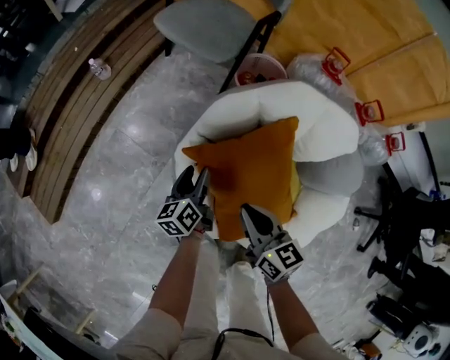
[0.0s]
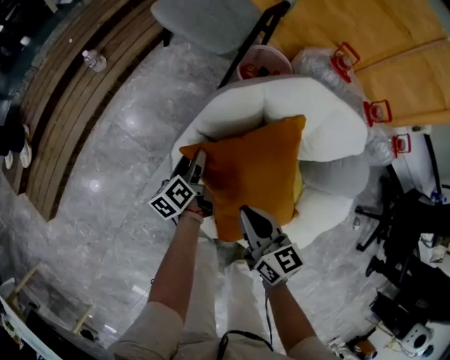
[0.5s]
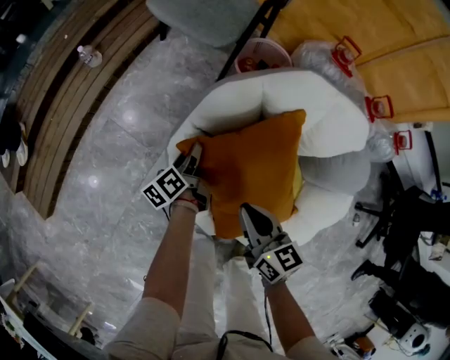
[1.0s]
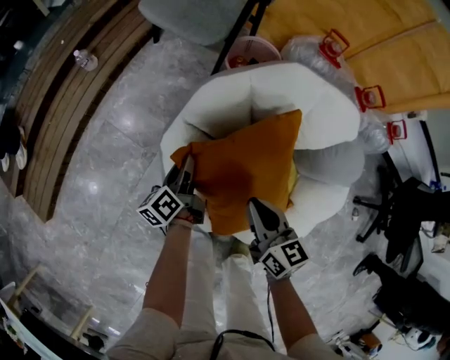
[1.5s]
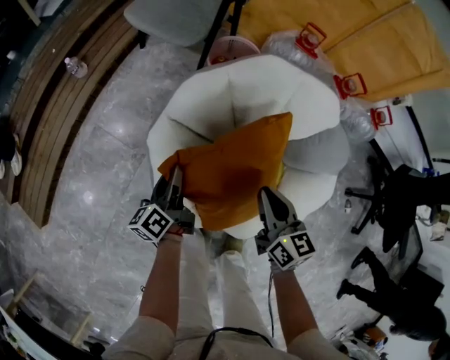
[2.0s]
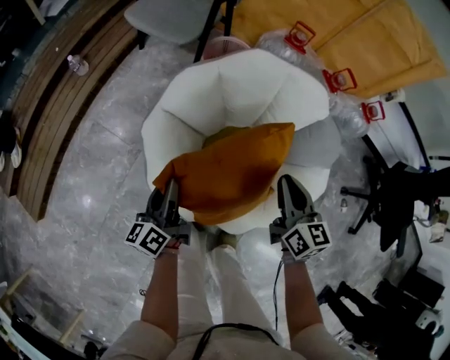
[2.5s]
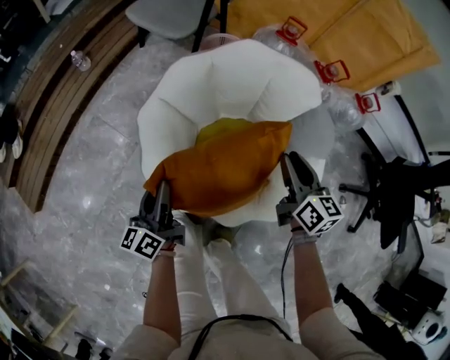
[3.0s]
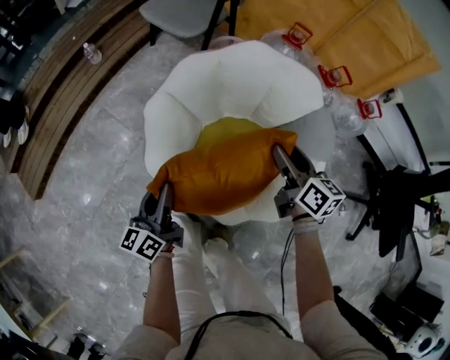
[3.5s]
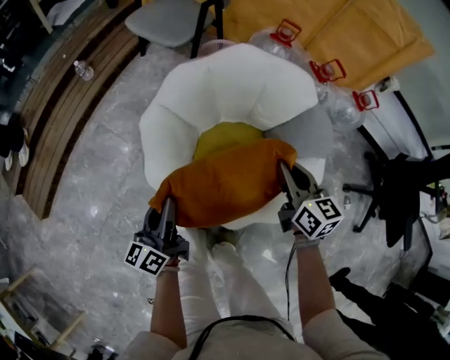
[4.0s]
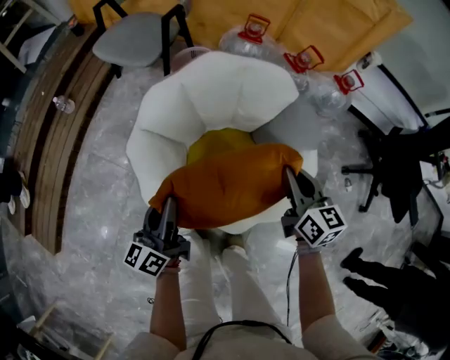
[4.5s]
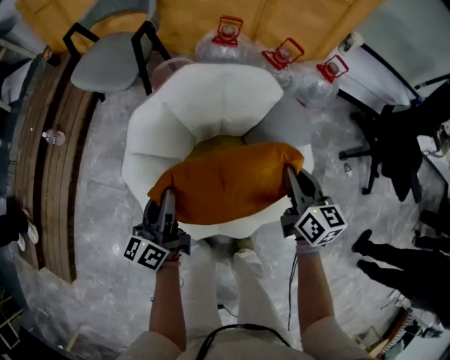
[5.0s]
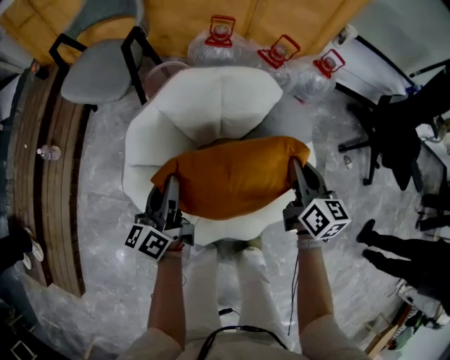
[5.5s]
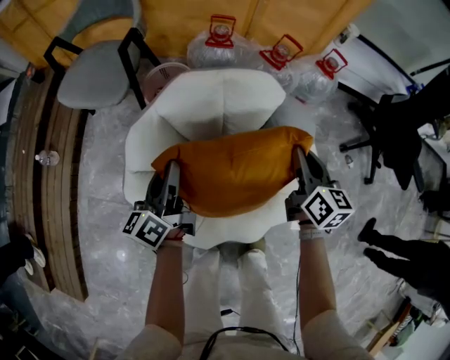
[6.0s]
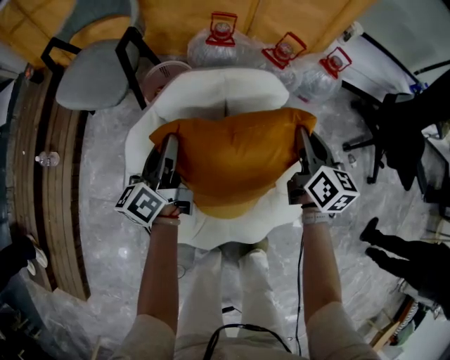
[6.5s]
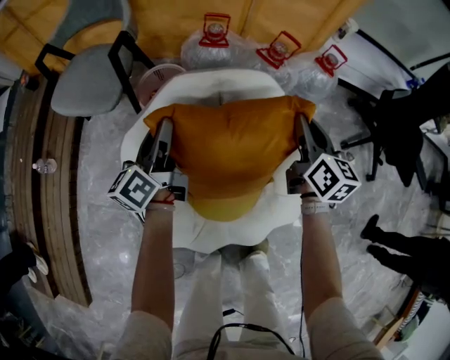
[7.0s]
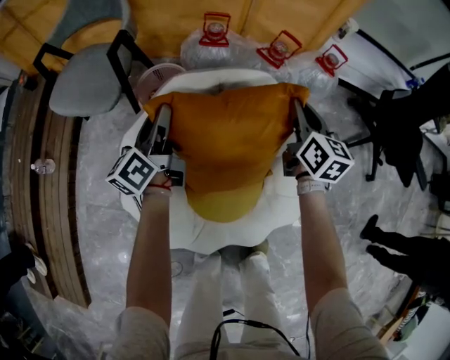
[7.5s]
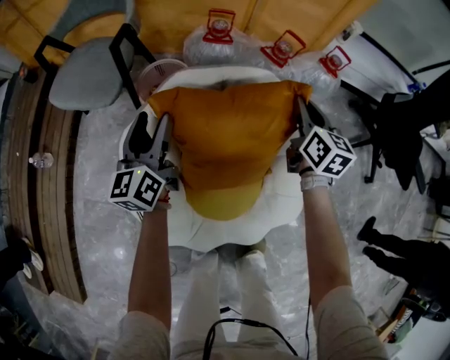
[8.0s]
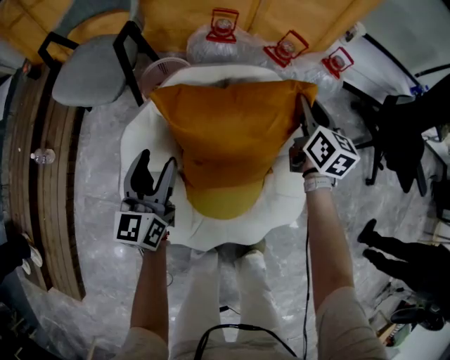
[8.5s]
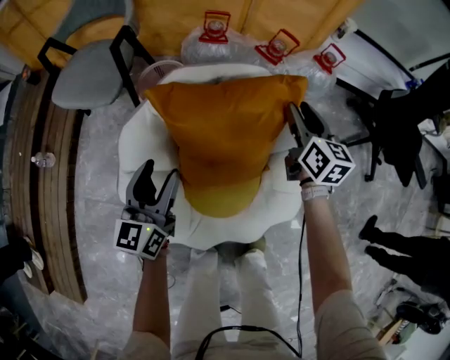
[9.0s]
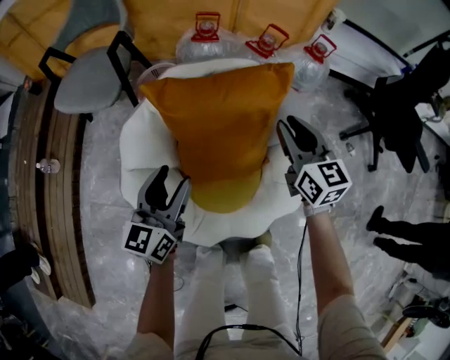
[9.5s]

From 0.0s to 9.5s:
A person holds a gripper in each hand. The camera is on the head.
From 0.0s to 2.0s: The left gripper closes up, while the right gripper is displaced to the right by some 10 cm.
From 2.0s to 4.0s: The left gripper moves backward and upward, about 20 cm. Meanwhile the right gripper heads to the right, covering some 10 cm, and opens and closes again.
From 4.0s to 5.5s: The right gripper changes place by some 10 cm, and changes its angle by some 30 degrees; the left gripper ends up roughly 25 cm from where it was, and swivels some 20 degrees.
From 5.5s to 7.5s: The two grippers go roughly 20 cm forward.
From 7.5s to 9.5s: The left gripper moves backward, approximately 20 cm, changes its angle by roughly 30 degrees, and opens. The right gripper goes roughly 10 cm backward.

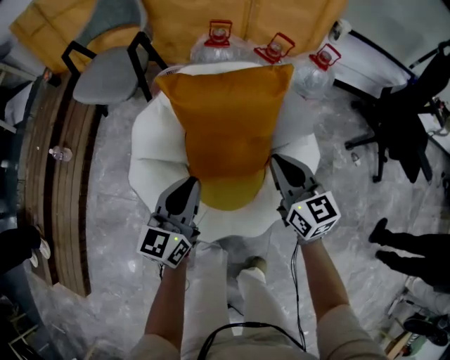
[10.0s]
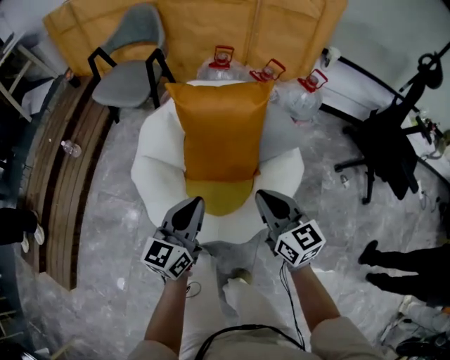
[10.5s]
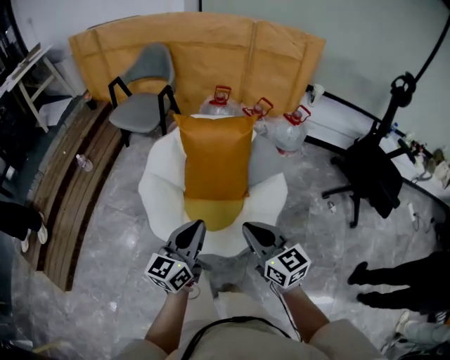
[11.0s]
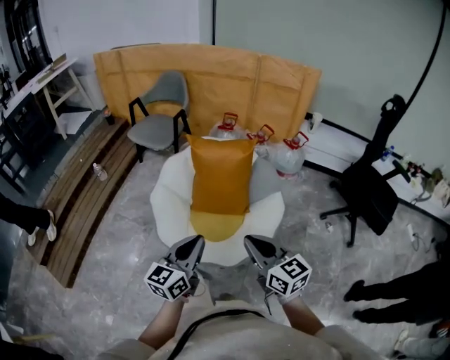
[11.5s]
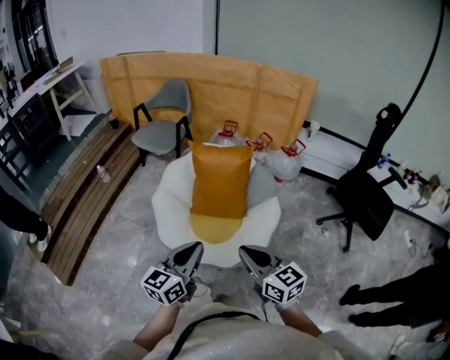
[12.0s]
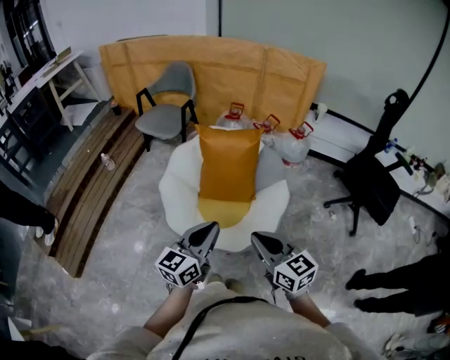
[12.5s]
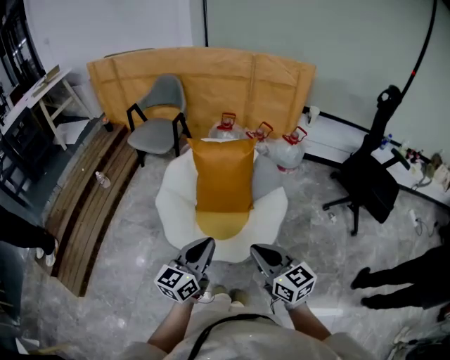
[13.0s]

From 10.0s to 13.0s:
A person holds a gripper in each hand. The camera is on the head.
From 10.0s to 11.5s: Both grippers move backward and upward, some 35 cm. The right gripper changes its angle by approximately 20 degrees.
From 11.5s to 13.0s: The grippers make only small movements.

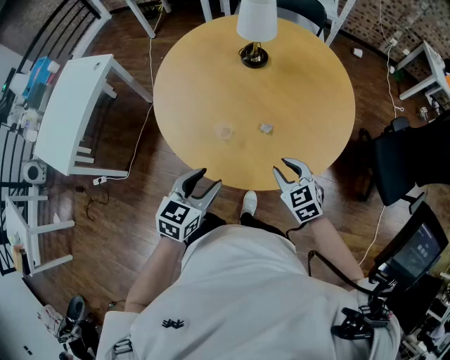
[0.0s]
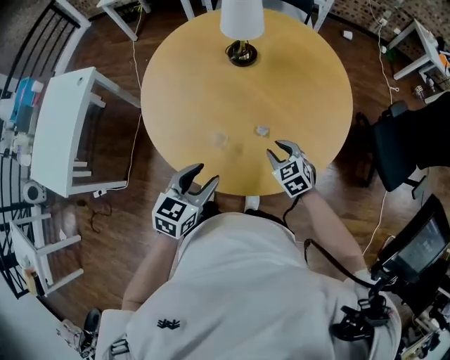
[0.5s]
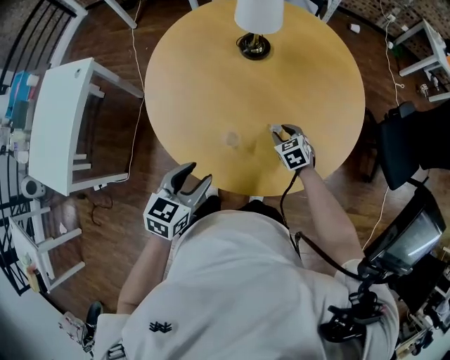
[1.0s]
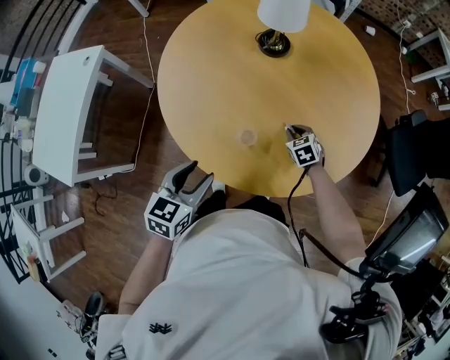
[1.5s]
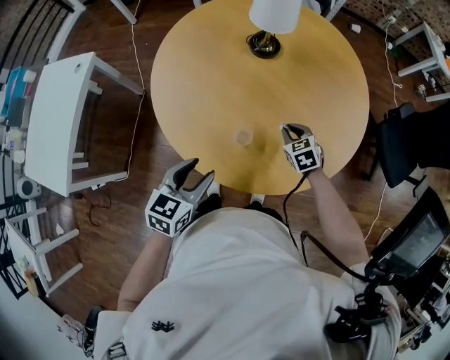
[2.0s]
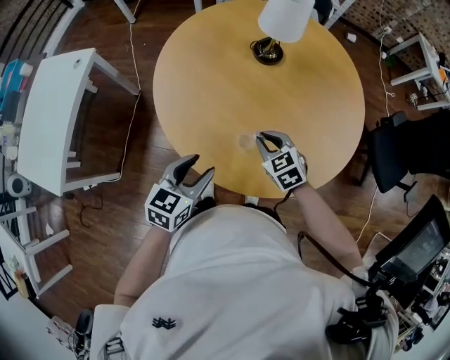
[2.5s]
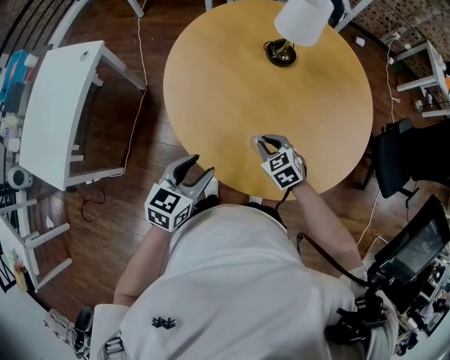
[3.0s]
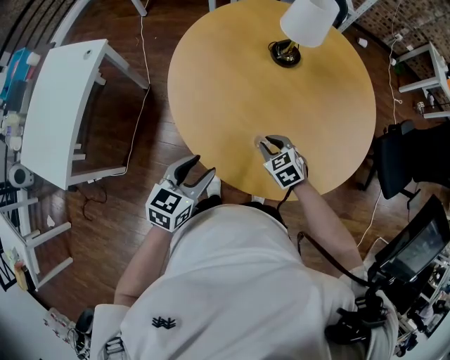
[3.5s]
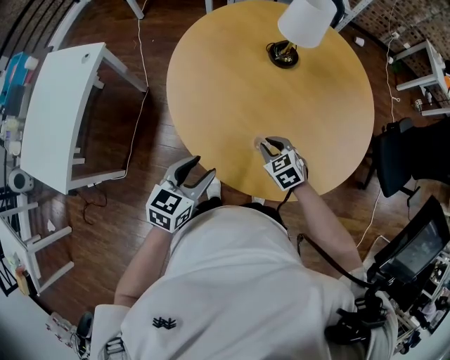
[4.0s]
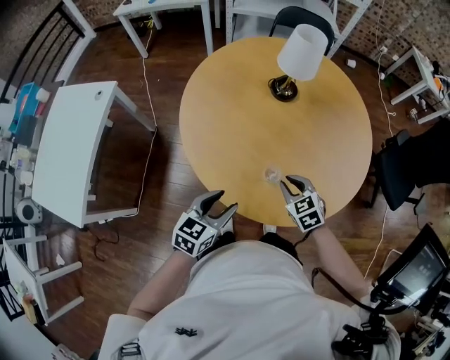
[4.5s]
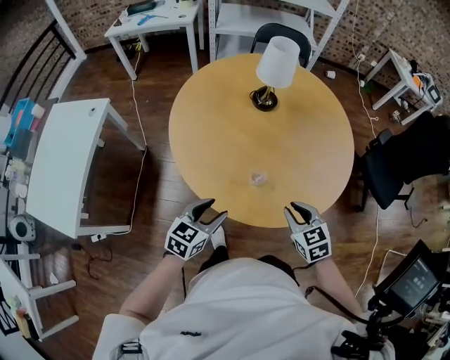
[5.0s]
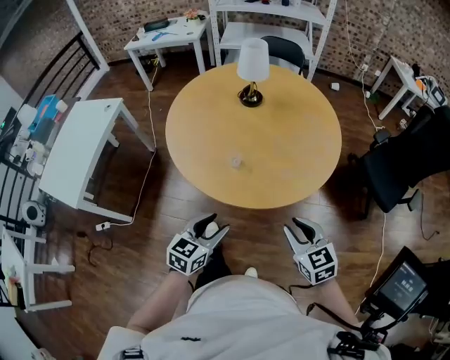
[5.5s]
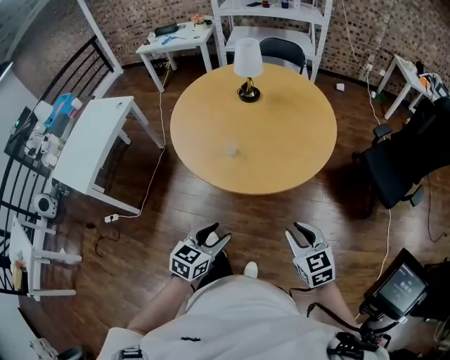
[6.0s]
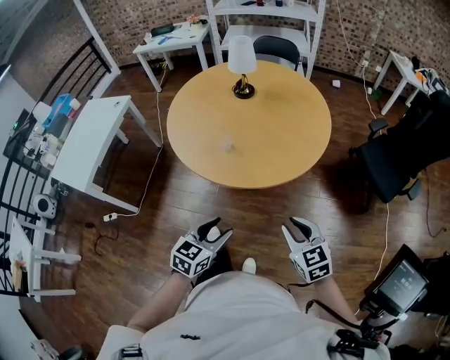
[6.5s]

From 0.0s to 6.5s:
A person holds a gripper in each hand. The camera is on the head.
From 0.0s to 2.0s: The right gripper shifts some 20 cm forward and downward. The left gripper heads to the left and forward, covering roughly 15 cm.
From 2.0s to 4.5s: The left gripper is displaced to the left by about 5 cm. Meanwhile the right gripper travels to the left, backward and upward by some 15 cm.
From 4.5s to 6.5s: Both grippers move backward and to the right, approximately 40 cm. The right gripper changes its angle by some 20 degrees.

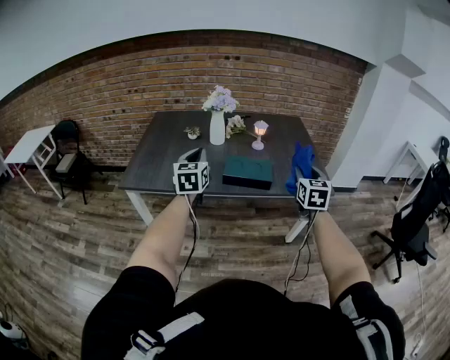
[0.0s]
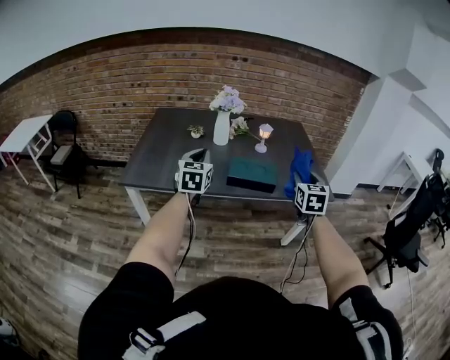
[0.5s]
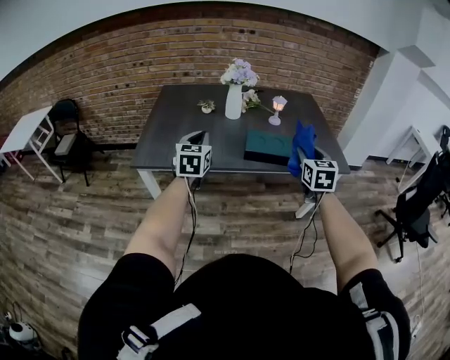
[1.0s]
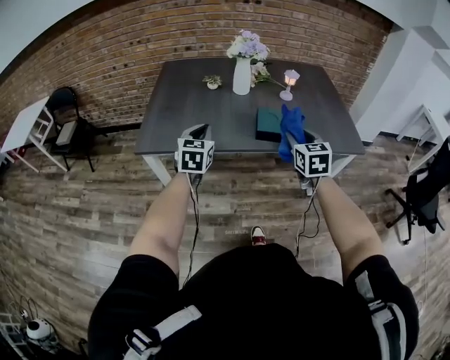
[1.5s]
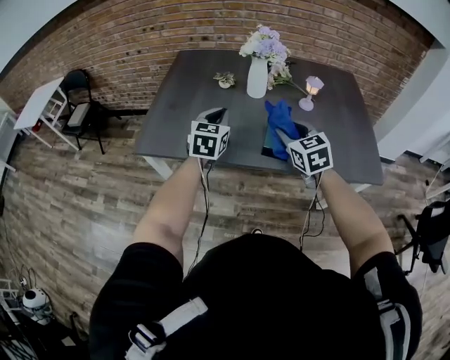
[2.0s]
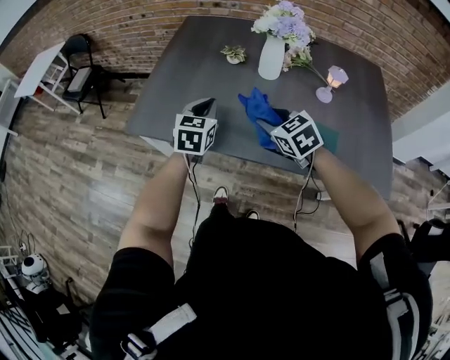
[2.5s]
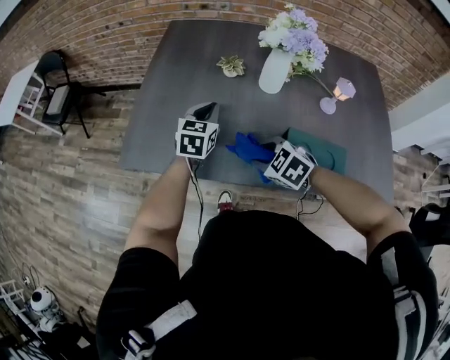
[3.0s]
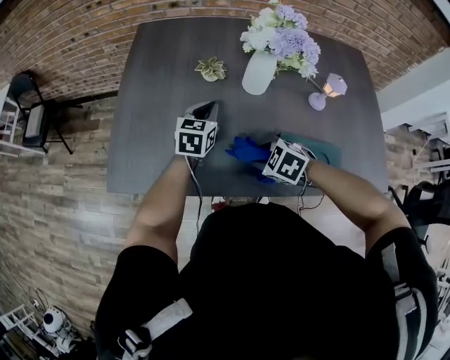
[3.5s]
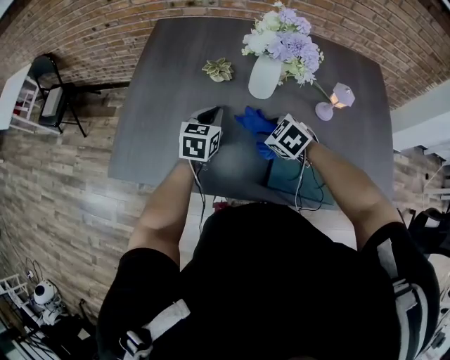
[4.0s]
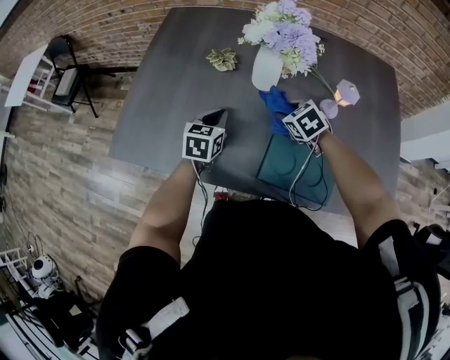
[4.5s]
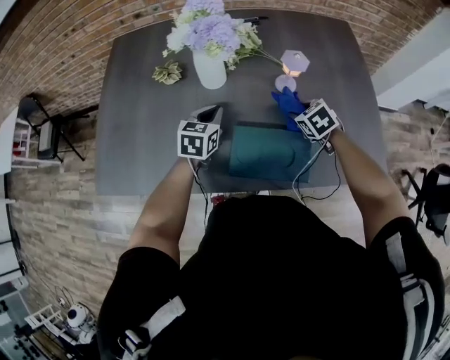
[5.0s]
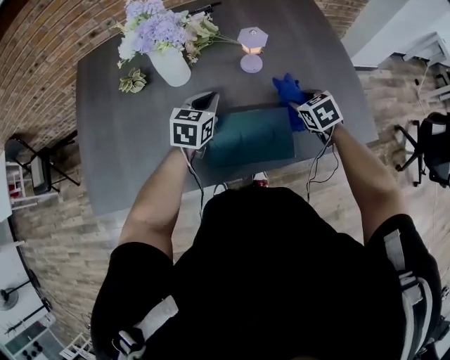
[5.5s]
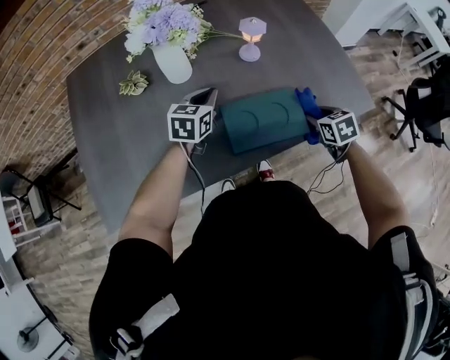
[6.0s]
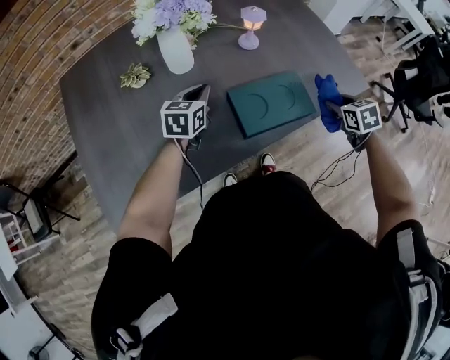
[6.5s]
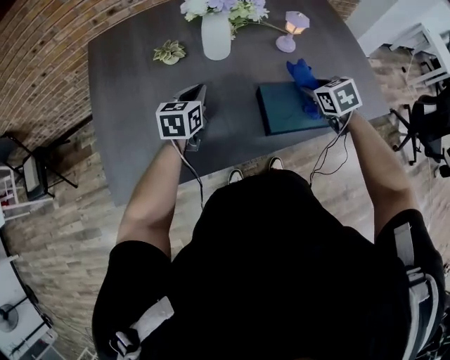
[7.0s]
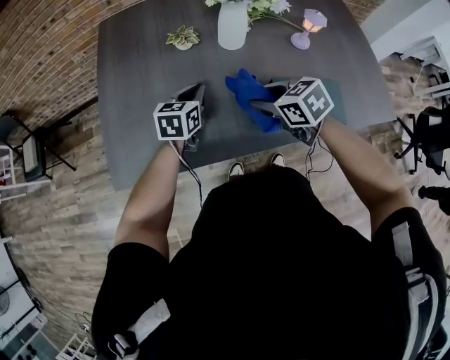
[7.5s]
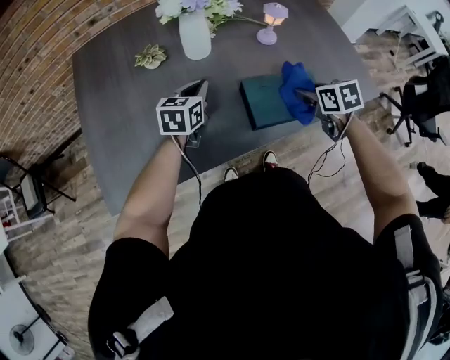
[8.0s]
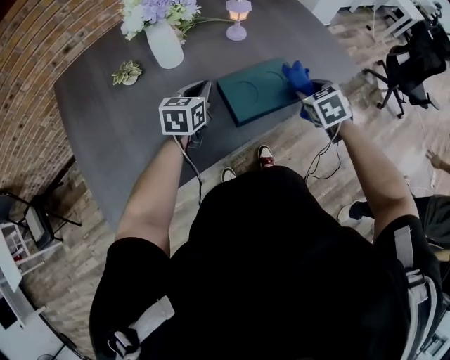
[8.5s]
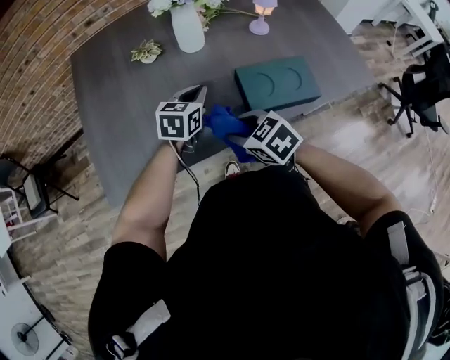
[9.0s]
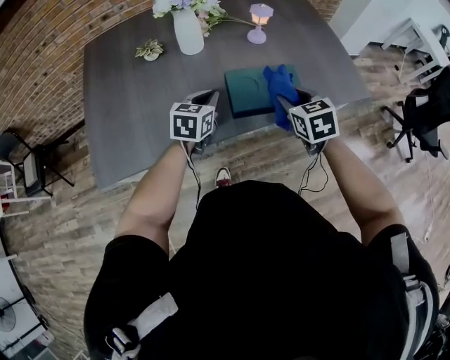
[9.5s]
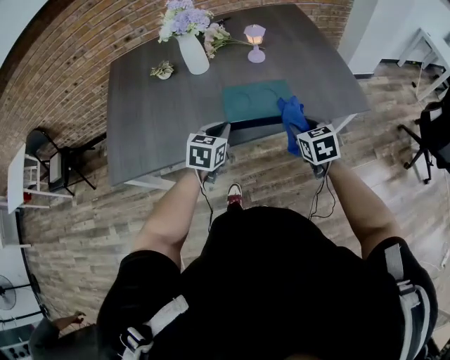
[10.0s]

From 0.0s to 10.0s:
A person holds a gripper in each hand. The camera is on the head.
From 0.0s to 2.0s: The right gripper travels to the left and forward by roughly 30 cm, and swivels roughly 40 degrees; the left gripper goes roughly 20 cm forward, downward and to the left.
From 2.0s to 4.0s: The two grippers go roughly 25 cm forward and downward. The right gripper points its fingers approximately 30 degrees further downward.
From 4.0s to 6.0s: The left gripper moves some 20 cm, and turns by some 30 degrees, while the right gripper changes place by about 35 cm, and rolls clockwise, seen from behind, by about 50 degrees.
From 8.0s to 10.0s: The left gripper moves about 20 cm.
